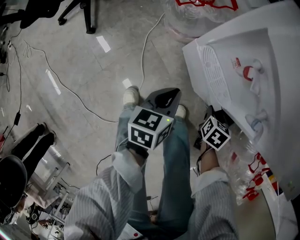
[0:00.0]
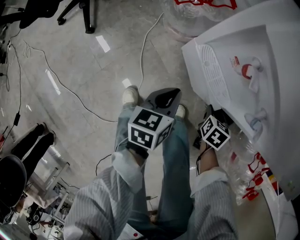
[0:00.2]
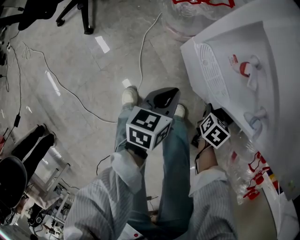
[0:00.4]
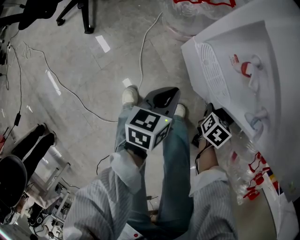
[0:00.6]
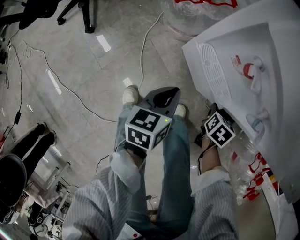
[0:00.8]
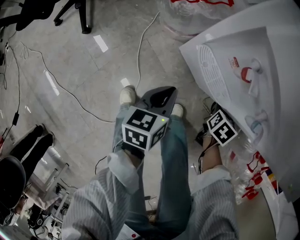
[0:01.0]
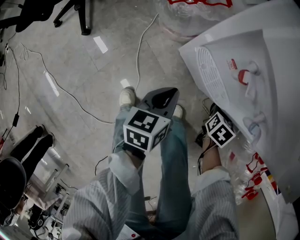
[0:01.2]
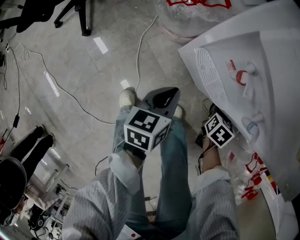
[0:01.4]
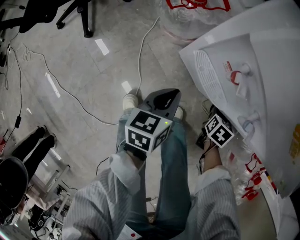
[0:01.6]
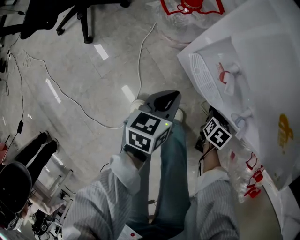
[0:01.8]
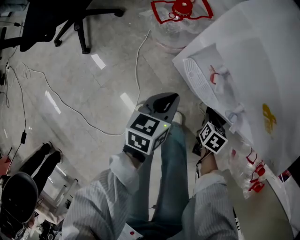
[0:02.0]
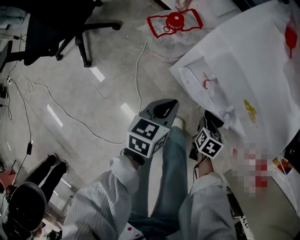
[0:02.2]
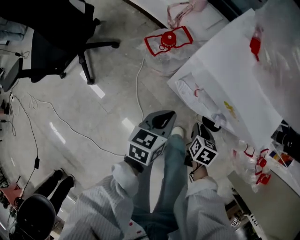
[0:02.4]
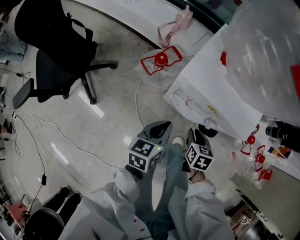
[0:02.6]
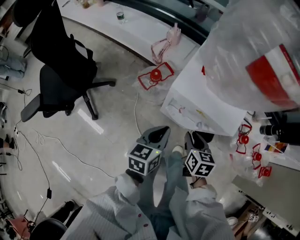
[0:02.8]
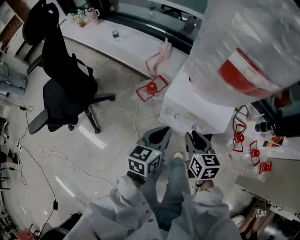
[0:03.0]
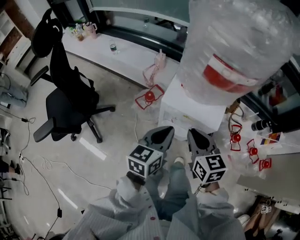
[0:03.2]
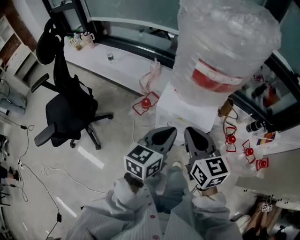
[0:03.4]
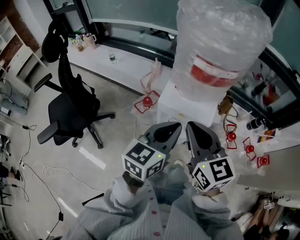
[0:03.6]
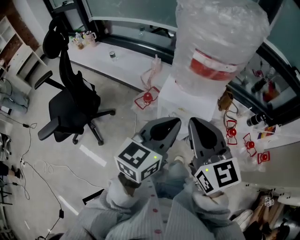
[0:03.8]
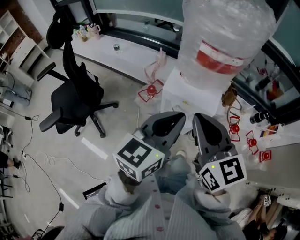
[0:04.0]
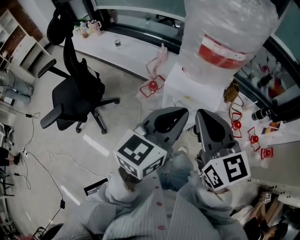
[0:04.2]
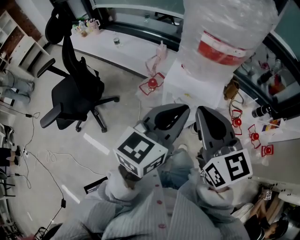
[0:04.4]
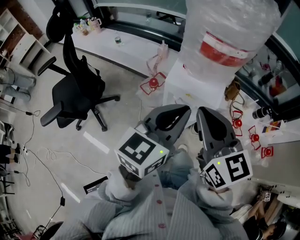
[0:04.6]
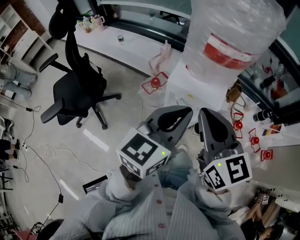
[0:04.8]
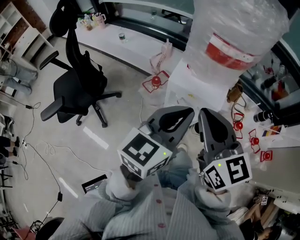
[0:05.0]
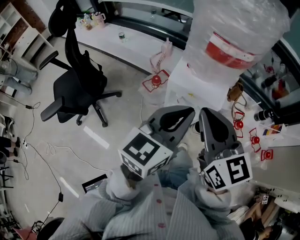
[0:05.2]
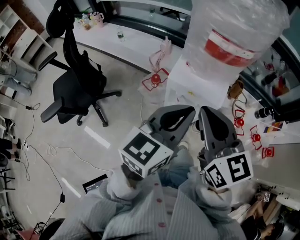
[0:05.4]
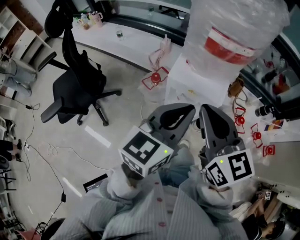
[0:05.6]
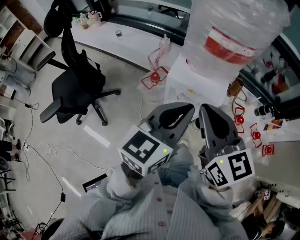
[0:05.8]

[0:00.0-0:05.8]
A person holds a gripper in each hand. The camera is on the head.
0:00.0 to 0:01.4: The grippers stay close to where they were, moving slightly.
0:01.4 to 0:02.8: The right gripper heads upward and to the left, covering roughly 35 cm, and swivels some 30 degrees. Meanwhile the left gripper shifts about 30 cm upward, and turns by about 30 degrees.
0:02.8 to 0:04.4: The two grippers go about 35 cm upward. The right gripper points its fingers some 40 degrees further upward, and closes, while the left gripper changes its angle by some 30 degrees.
0:04.4 to 0:05.8: The grippers stay close to where they were, moving slightly.

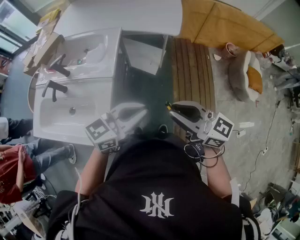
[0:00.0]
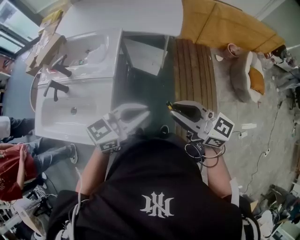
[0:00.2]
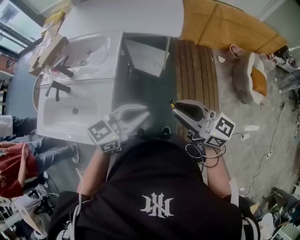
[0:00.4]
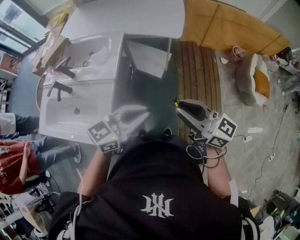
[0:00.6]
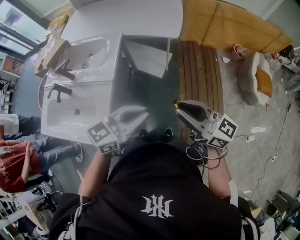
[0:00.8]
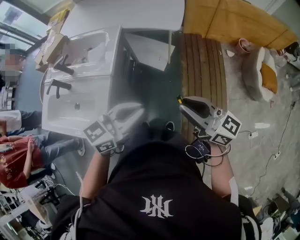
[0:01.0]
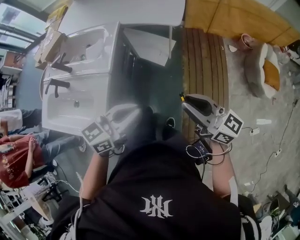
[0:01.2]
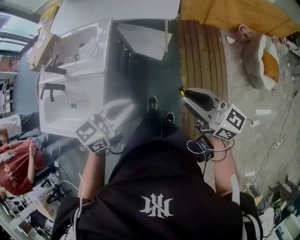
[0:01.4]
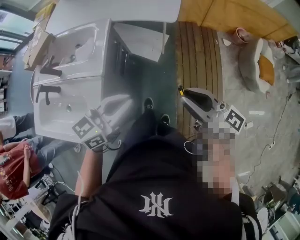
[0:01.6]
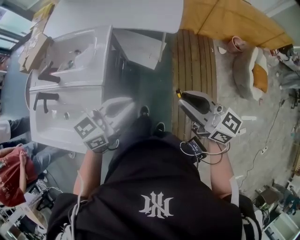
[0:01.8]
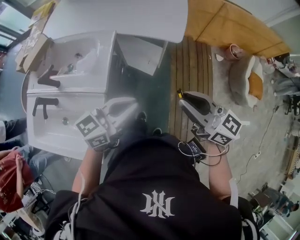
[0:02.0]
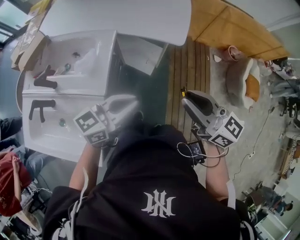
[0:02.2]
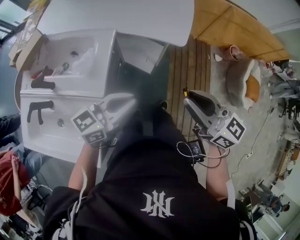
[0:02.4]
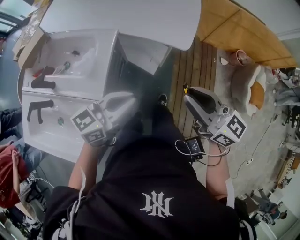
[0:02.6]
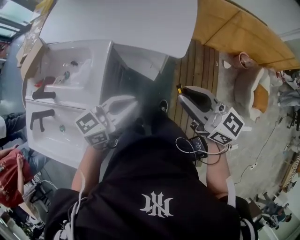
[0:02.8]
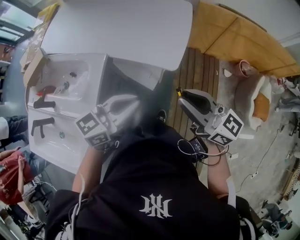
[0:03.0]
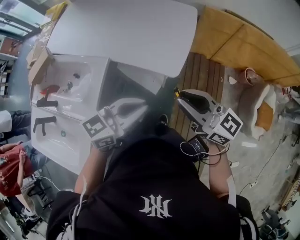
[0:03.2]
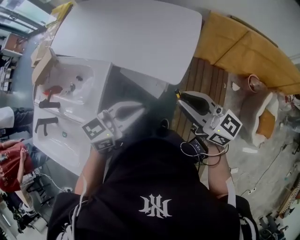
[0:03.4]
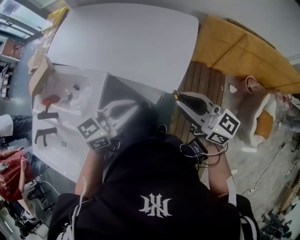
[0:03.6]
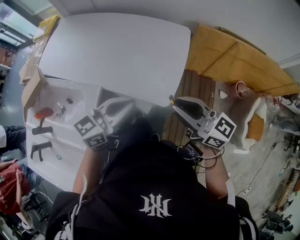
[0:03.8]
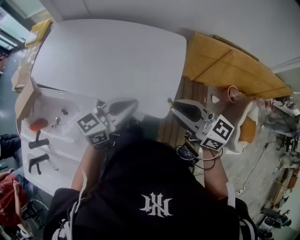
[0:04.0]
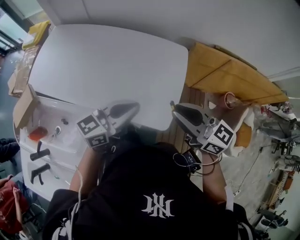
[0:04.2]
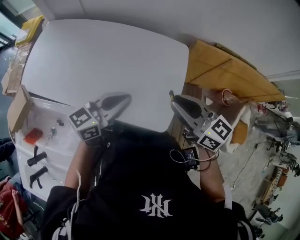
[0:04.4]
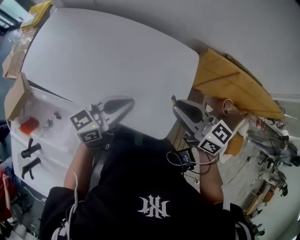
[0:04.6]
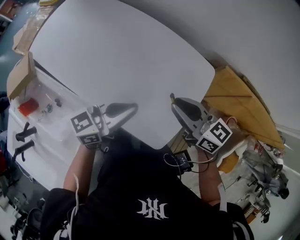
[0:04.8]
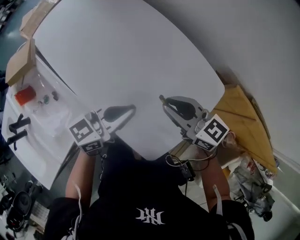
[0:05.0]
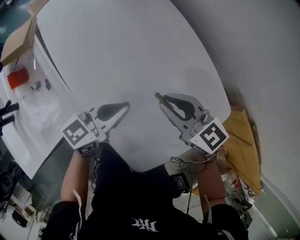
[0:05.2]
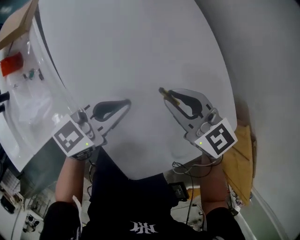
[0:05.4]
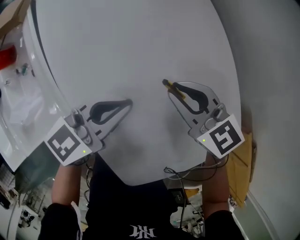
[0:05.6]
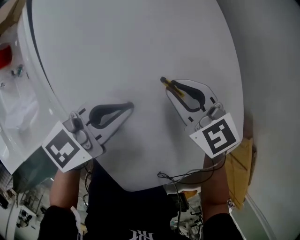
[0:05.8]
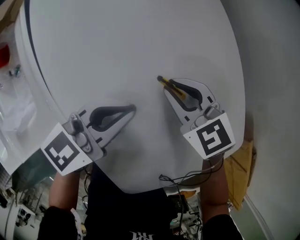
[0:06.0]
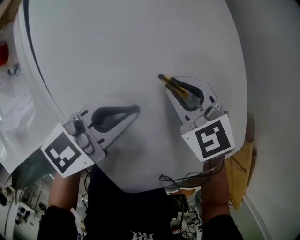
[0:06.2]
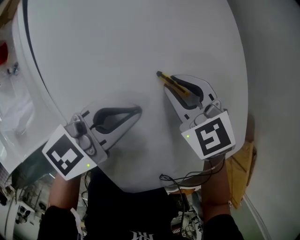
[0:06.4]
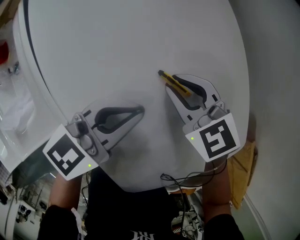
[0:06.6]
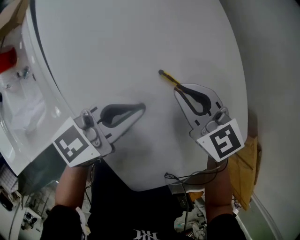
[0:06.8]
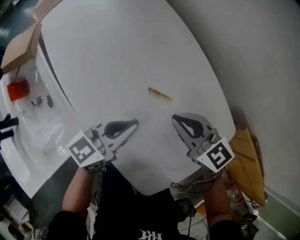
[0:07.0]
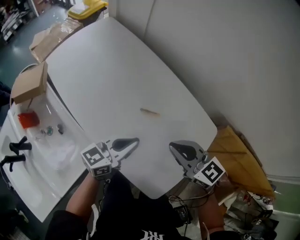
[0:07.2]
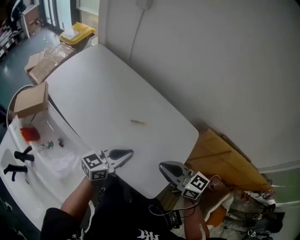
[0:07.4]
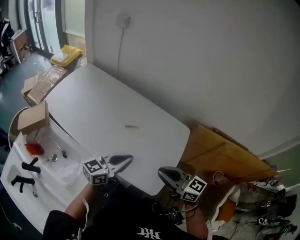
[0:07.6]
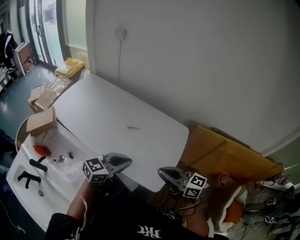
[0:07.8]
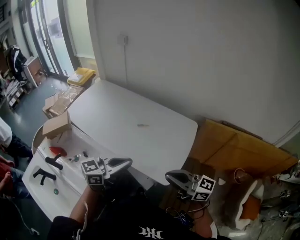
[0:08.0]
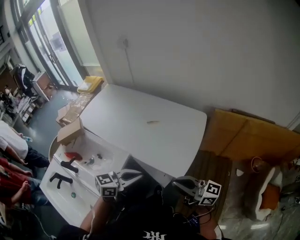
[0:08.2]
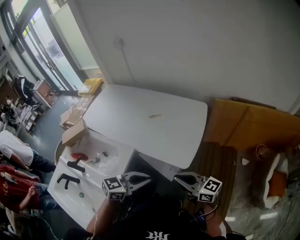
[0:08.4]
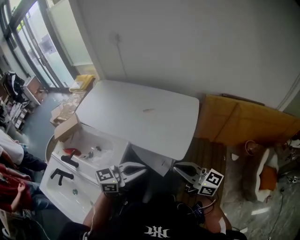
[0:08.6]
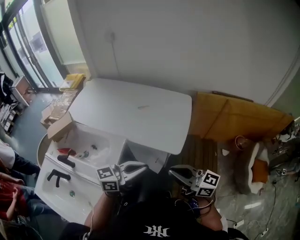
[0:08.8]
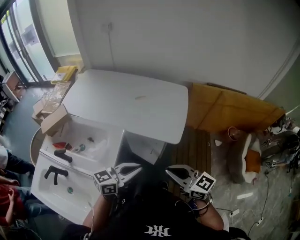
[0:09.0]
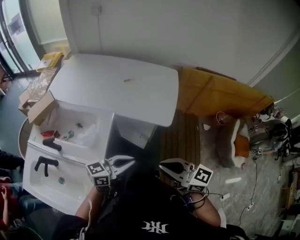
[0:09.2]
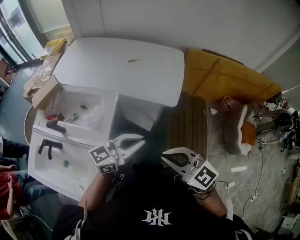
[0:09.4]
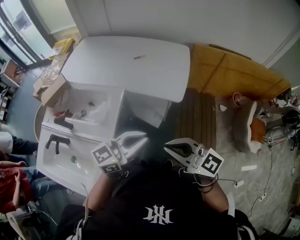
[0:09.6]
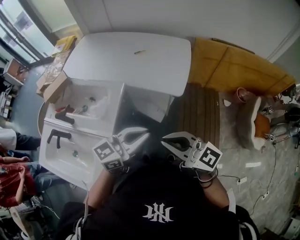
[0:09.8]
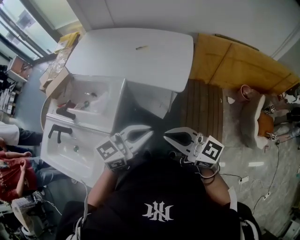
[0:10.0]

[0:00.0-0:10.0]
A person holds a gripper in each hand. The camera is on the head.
0:00.0 to 0:01.4: The left gripper heads to the right, covering some 5 cm. The right gripper is displaced to the right and forward by approximately 15 cm.
0:01.4 to 0:02.8: Both grippers travel together forward, some 30 cm.
0:02.8 to 0:04.2: Both grippers move forward, roughly 30 cm.
0:04.2 to 0:05.8: The left gripper moves downward, about 30 cm, and changes its angle by about 50 degrees. The right gripper moves approximately 50 cm, and tilts its fingers roughly 30 degrees downward.
0:05.8 to 0:07.2: The right gripper shifts about 25 cm upward and backward, and changes its angle by some 30 degrees, while the left gripper moves upward and backward, about 15 cm, and swivels some 20 degrees.
0:07.2 to 0:08.6: The pair of grippers is taken roughly 40 cm. The left gripper rotates roughly 30 degrees. Meanwhile the right gripper rotates about 40 degrees.
0:08.6 to 0:10.0: Both grippers move backward, about 20 cm.

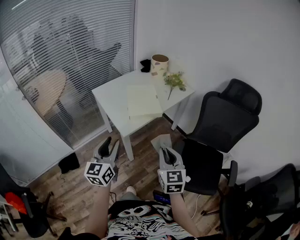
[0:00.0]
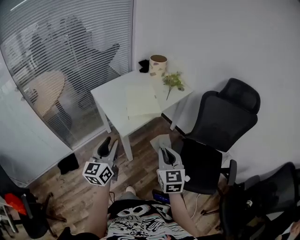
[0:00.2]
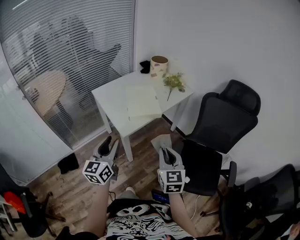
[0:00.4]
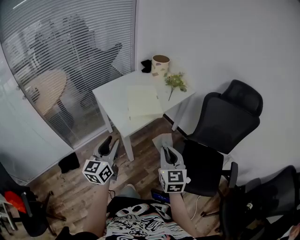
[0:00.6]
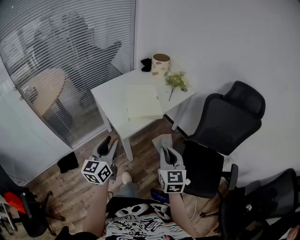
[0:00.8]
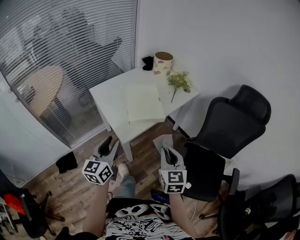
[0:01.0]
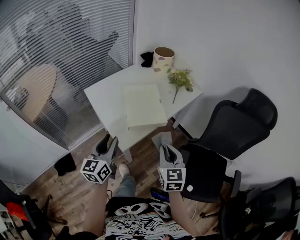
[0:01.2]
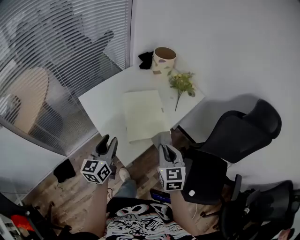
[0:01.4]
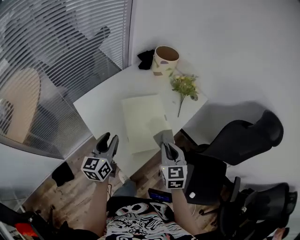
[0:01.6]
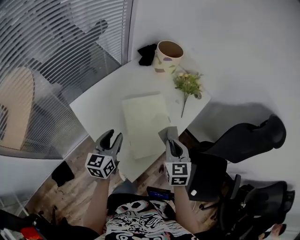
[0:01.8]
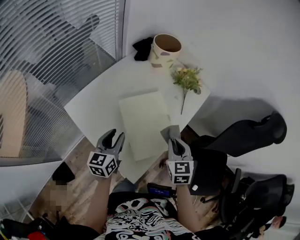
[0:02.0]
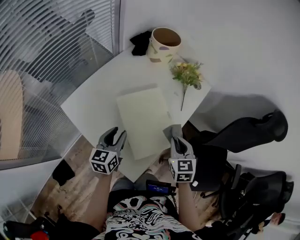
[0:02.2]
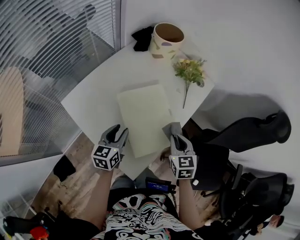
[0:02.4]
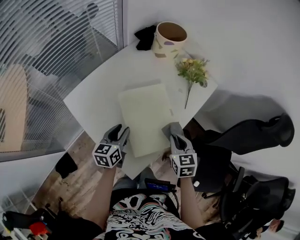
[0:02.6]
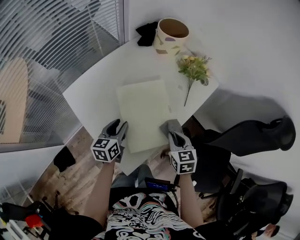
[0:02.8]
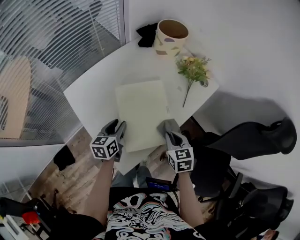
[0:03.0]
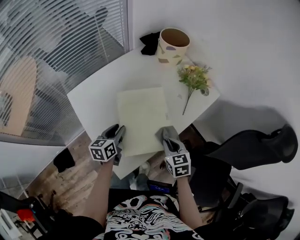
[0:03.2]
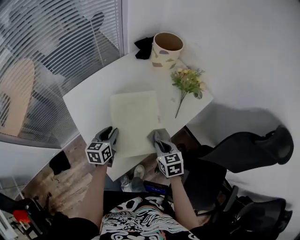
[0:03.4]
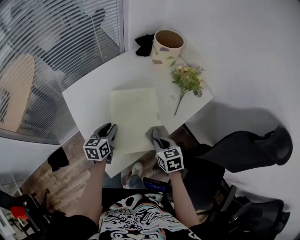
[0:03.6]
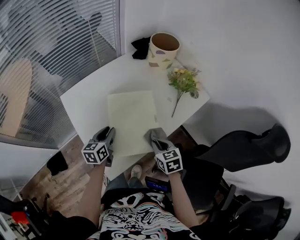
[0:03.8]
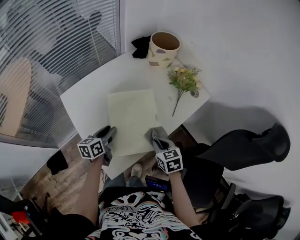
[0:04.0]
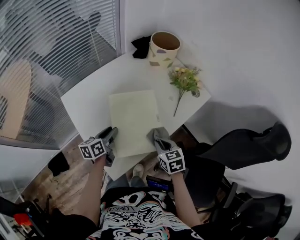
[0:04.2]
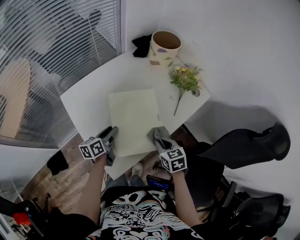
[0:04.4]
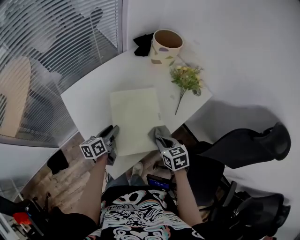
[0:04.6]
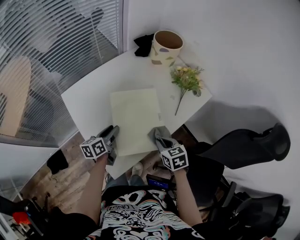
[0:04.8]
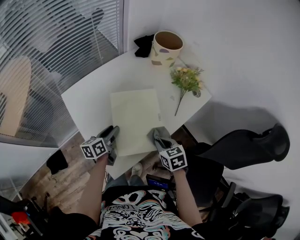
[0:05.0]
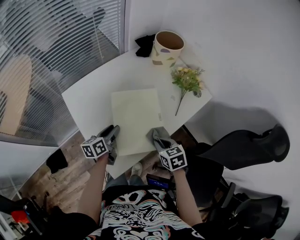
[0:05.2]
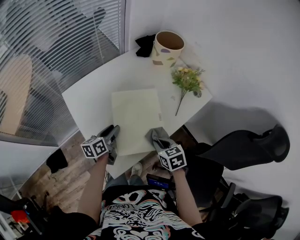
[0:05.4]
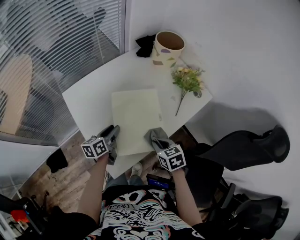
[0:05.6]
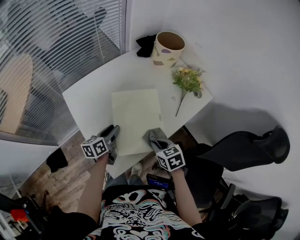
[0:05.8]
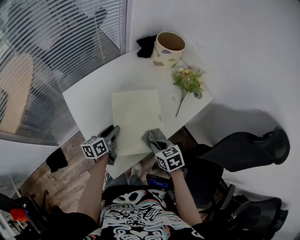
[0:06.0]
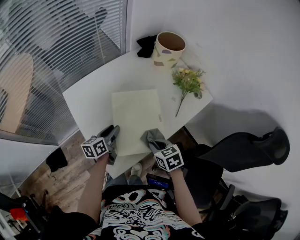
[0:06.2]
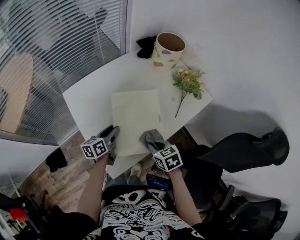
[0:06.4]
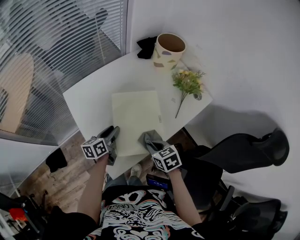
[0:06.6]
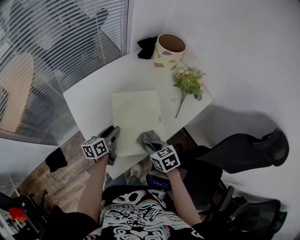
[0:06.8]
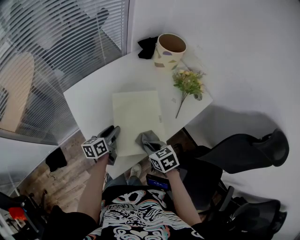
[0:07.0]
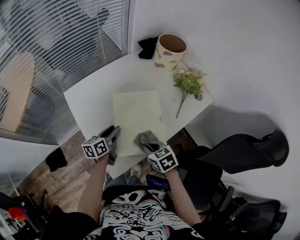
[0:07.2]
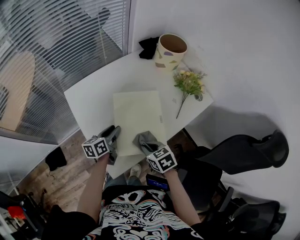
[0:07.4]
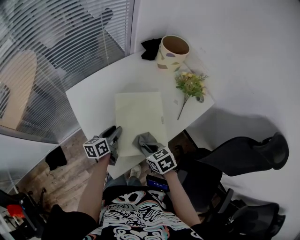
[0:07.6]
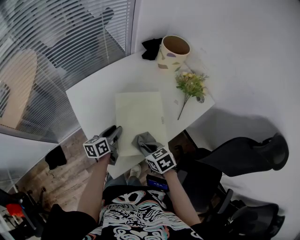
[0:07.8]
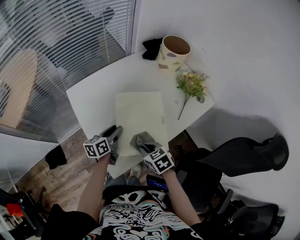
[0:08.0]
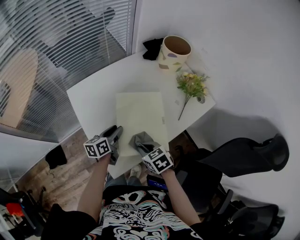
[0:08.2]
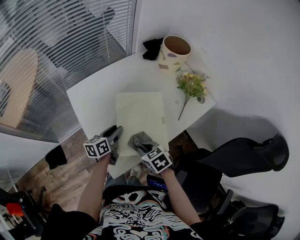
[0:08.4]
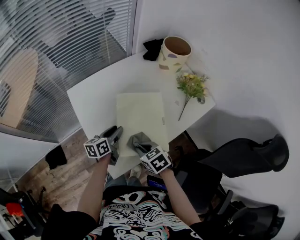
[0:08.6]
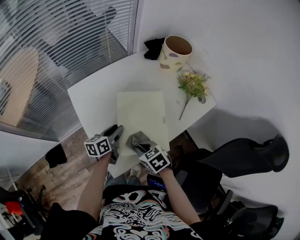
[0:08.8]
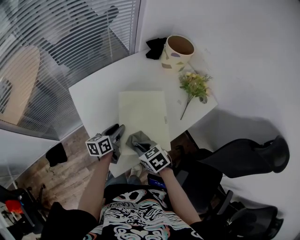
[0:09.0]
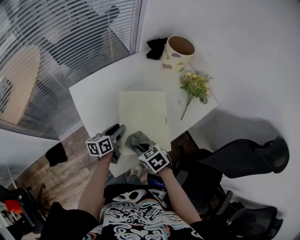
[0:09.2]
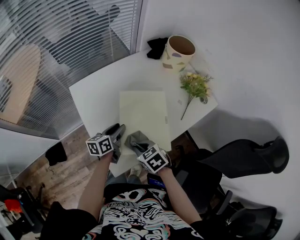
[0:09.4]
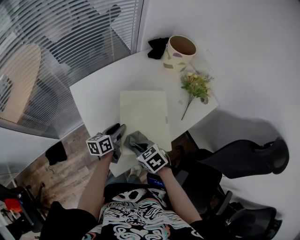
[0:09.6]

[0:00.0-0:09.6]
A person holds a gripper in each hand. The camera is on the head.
0:00.0 to 0:01.6: Both grippers travel together forward, roughly 35 cm.
0:01.6 to 0:03.2: Both grippers travel together downward and forward, roughly 15 cm. The right gripper swivels about 20 degrees, while the left gripper rotates about 20 degrees.
0:03.2 to 0:06.4: There are only small adjustments of the grippers.
0:06.4 to 0:08.0: The right gripper heads to the left, covering roughly 5 cm.
0:08.0 to 0:09.6: The grippers move only a little.
